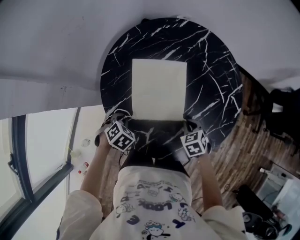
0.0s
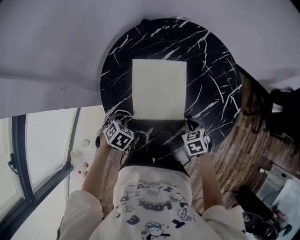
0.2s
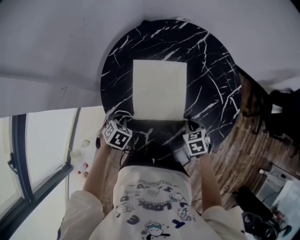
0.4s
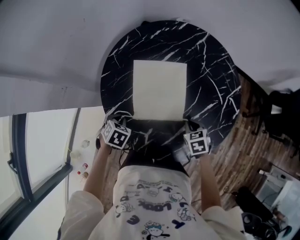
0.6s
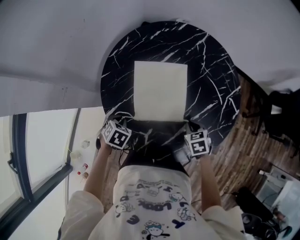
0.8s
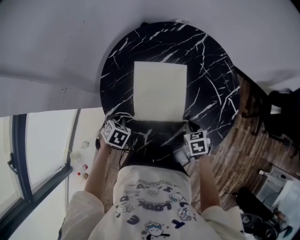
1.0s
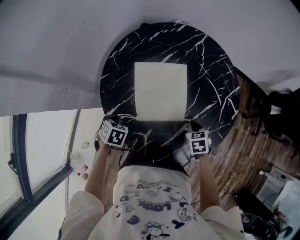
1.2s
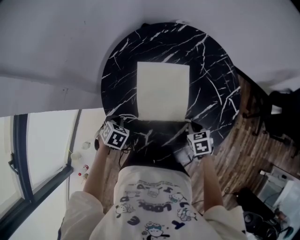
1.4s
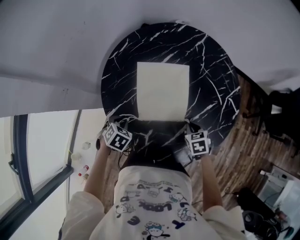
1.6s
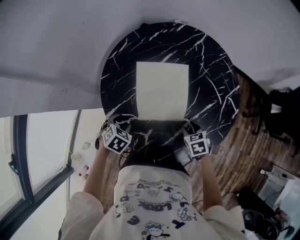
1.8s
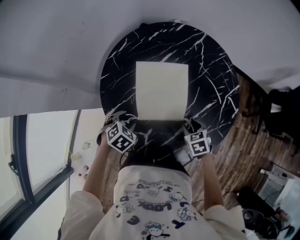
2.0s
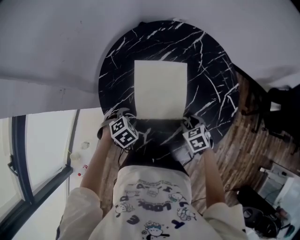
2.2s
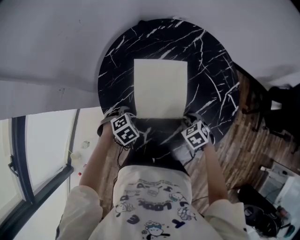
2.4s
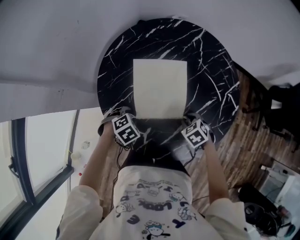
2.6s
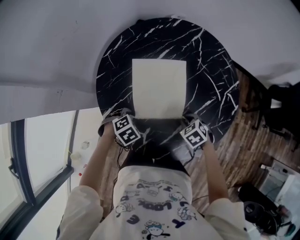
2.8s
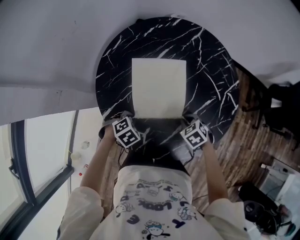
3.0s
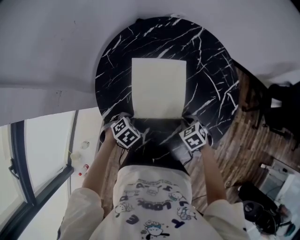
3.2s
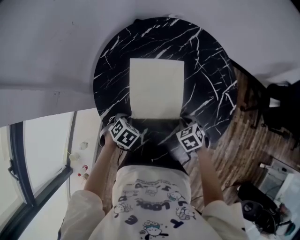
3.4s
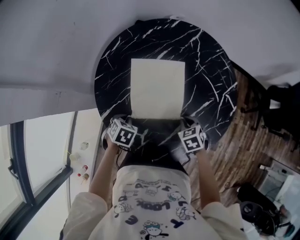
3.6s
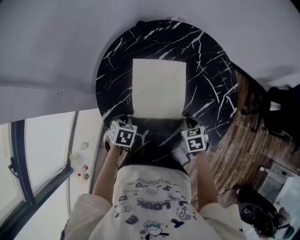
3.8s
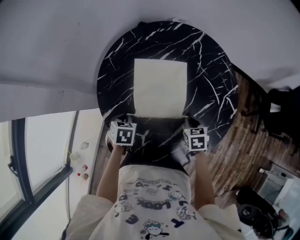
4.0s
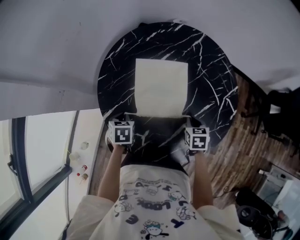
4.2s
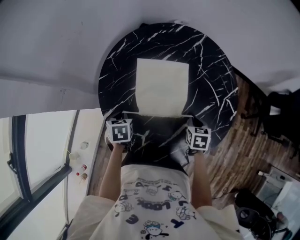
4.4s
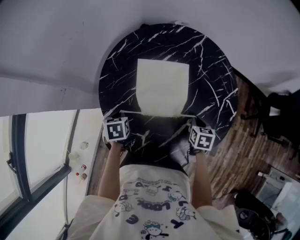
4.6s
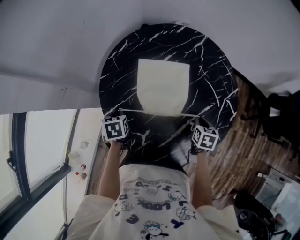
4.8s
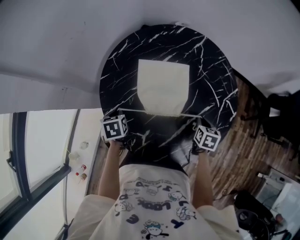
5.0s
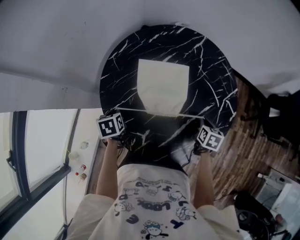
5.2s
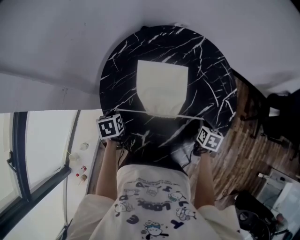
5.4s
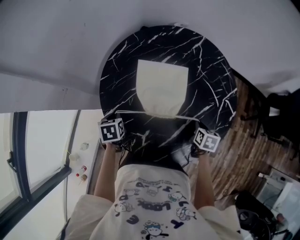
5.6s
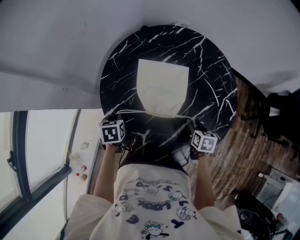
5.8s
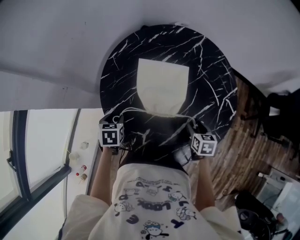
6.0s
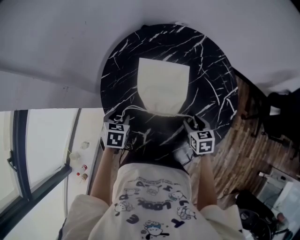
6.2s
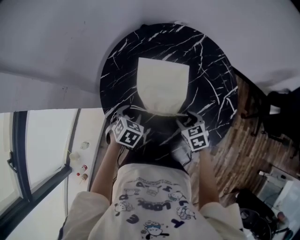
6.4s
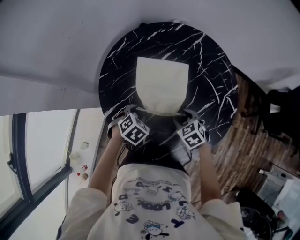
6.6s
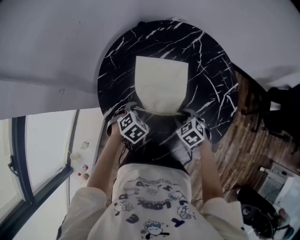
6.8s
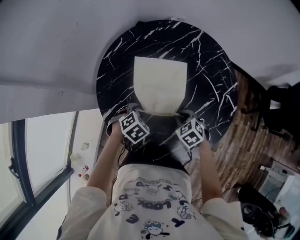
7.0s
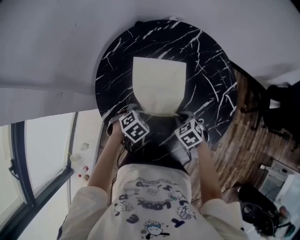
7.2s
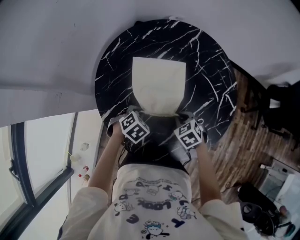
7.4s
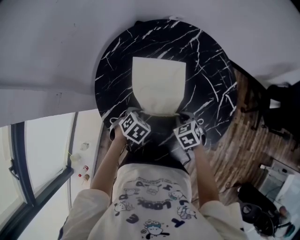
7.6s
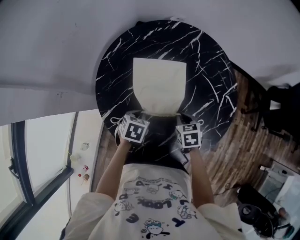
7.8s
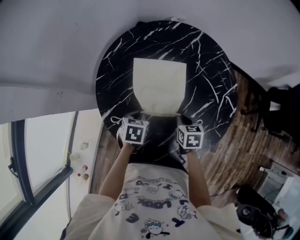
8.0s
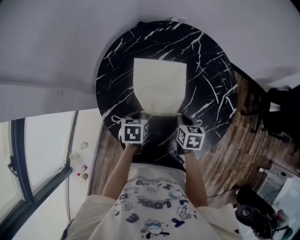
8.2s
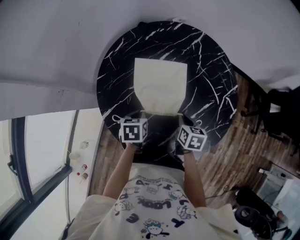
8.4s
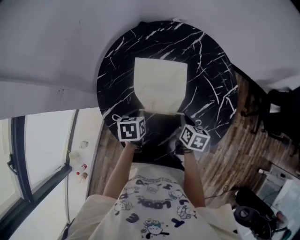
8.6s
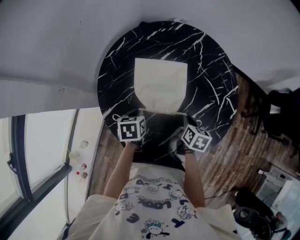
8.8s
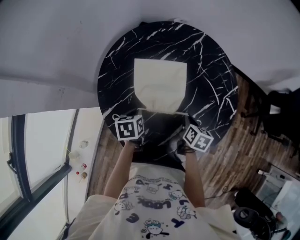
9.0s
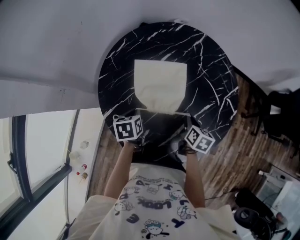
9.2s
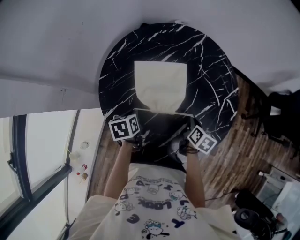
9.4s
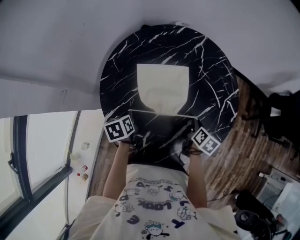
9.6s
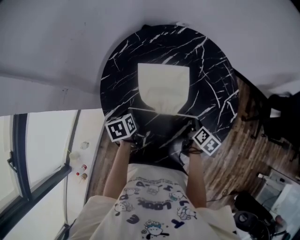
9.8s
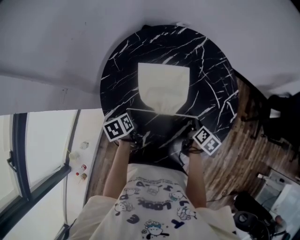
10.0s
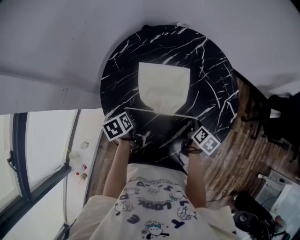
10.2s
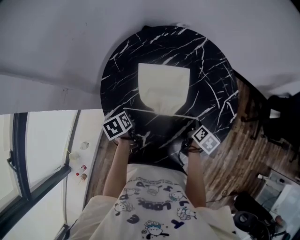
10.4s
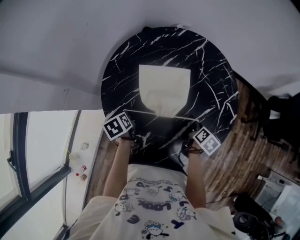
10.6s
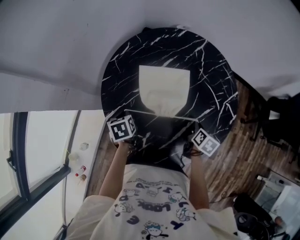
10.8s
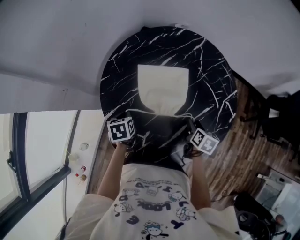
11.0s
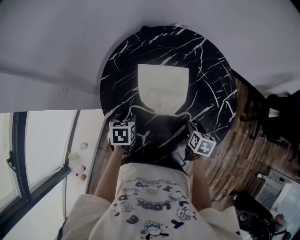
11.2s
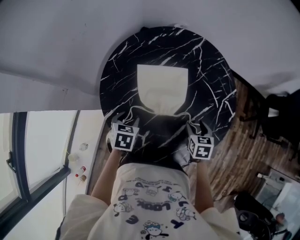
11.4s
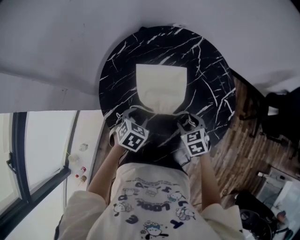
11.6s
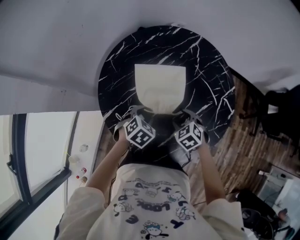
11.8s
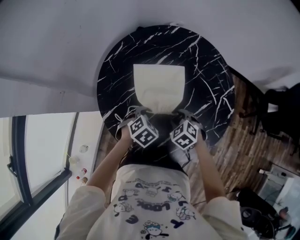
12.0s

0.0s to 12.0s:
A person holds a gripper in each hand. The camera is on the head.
1.6s to 3.0s: The right gripper changes its angle by approximately 20 degrees, and opens, then closes again; the left gripper changes place by roughly 5 cm, turns by some 30 degrees, and opens, then closes once more.
3.0s to 4.4s: The right gripper ends up roughly 5 cm from where it was, and swivels some 40 degrees. The left gripper shifts by about 5 cm, and rolls counterclockwise, seen from behind, by some 60 degrees.
4.4s to 6.0s: The right gripper opens its fingers, while the left gripper opens up.
6.0s to 7.6s: The right gripper moves to the left, about 10 cm, changes its angle by about 30 degrees, and closes its fingers. The left gripper is displaced to the right by approximately 15 cm, turns by roughly 40 degrees, and closes.
7.6s to 9.0s: The left gripper rolls counterclockwise, seen from behind, by about 50 degrees. The right gripper ends up about 5 cm from where it was, and twists some 50 degrees clockwise, seen from behind.
9.0s to 10.4s: The right gripper goes about 5 cm to the right. Meanwhile the left gripper shifts about 10 cm to the left, and rotates approximately 20 degrees.
10.4s to 12.0s: The left gripper shifts approximately 15 cm to the right, rotates around the line of its fingers by about 80 degrees, clockwise from behind, and opens. The right gripper goes roughly 15 cm to the left, twists approximately 90 degrees counterclockwise, seen from behind, and opens.

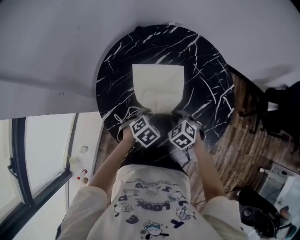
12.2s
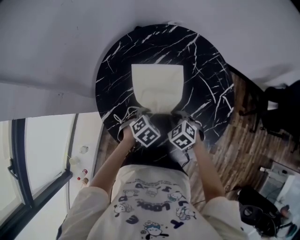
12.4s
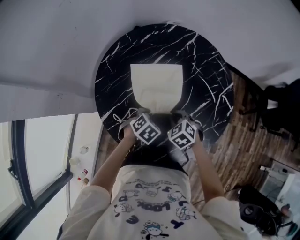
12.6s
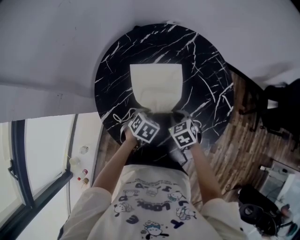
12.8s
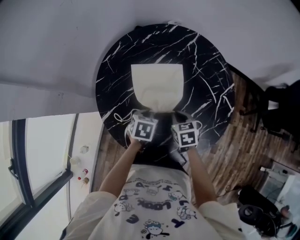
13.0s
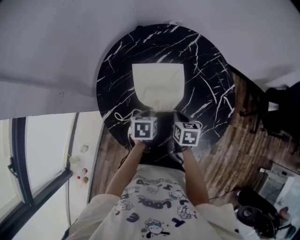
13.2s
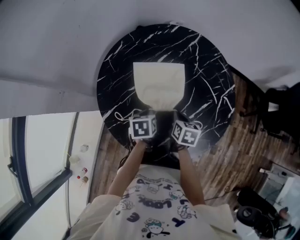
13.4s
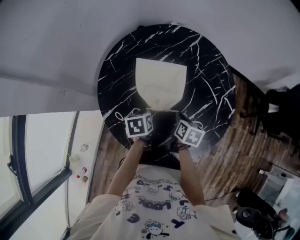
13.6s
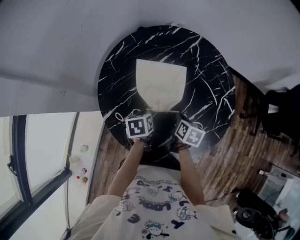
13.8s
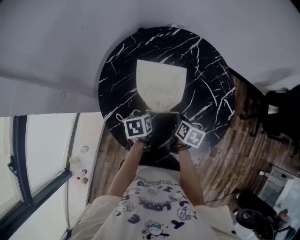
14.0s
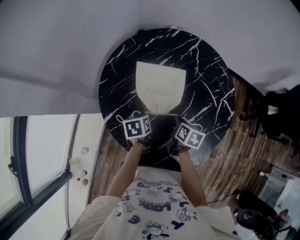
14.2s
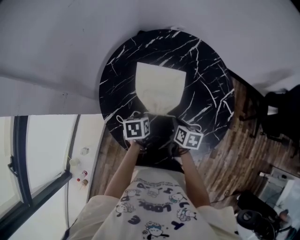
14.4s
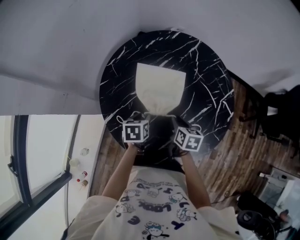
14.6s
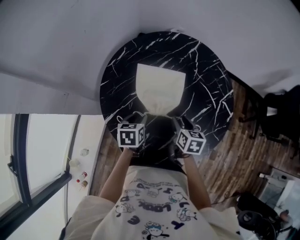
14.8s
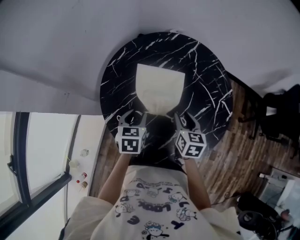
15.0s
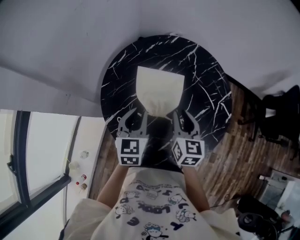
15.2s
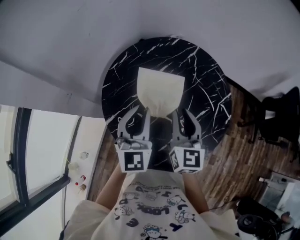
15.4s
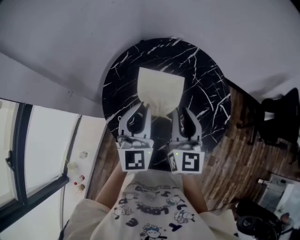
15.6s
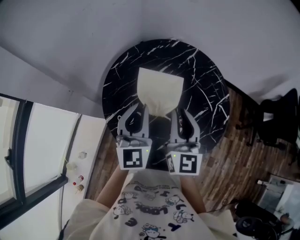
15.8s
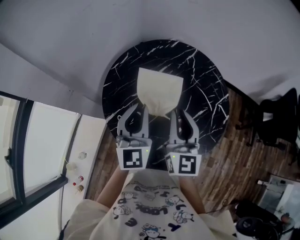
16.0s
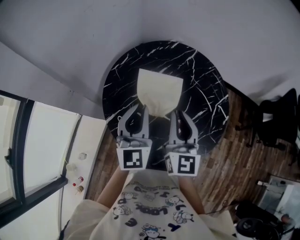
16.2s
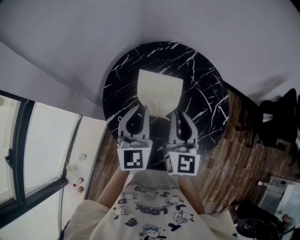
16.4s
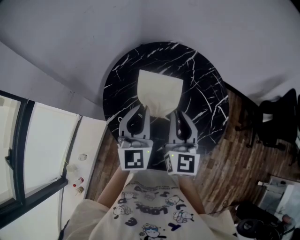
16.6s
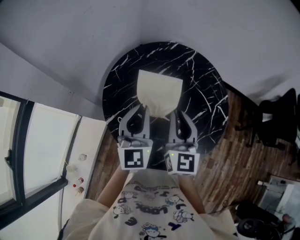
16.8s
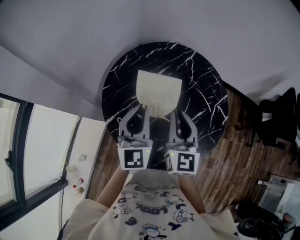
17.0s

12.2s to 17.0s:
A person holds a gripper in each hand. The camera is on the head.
12.2s to 13.8s: The right gripper rolls clockwise, seen from behind, by about 70 degrees; the left gripper rolls counterclockwise, seen from behind, by approximately 60 degrees, and closes up.
13.8s to 15.4s: The two grippers go some 25 cm upward. The left gripper tips its fingers upward by roughly 50 degrees, and opens and closes again. Meanwhile the right gripper angles its fingers upward, by approximately 40 degrees, and opens, then closes again.
15.4s to 17.0s: The grippers make only small movements.

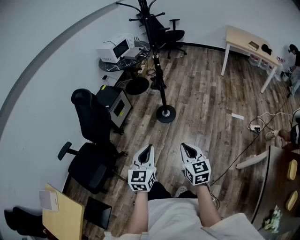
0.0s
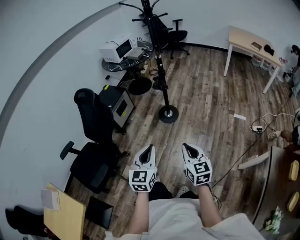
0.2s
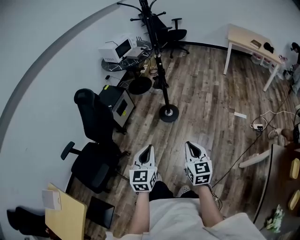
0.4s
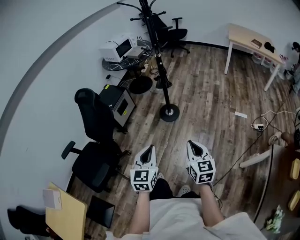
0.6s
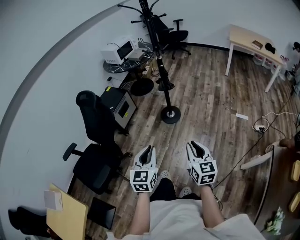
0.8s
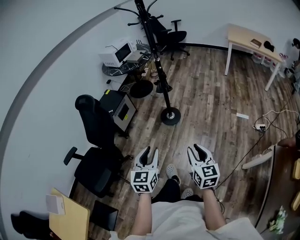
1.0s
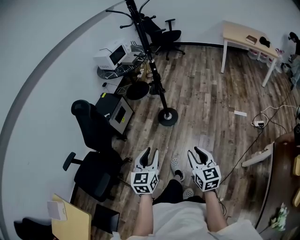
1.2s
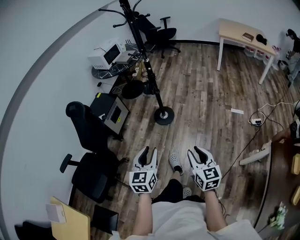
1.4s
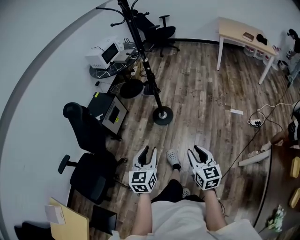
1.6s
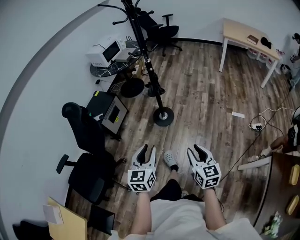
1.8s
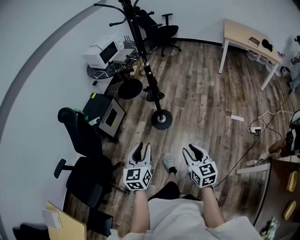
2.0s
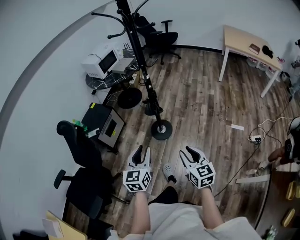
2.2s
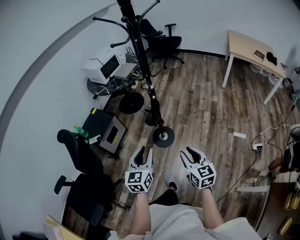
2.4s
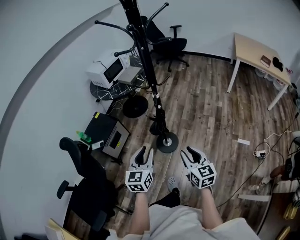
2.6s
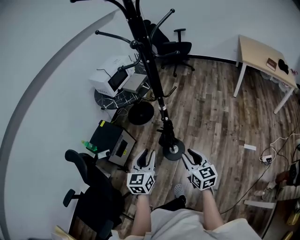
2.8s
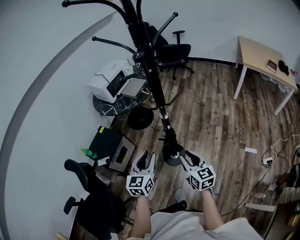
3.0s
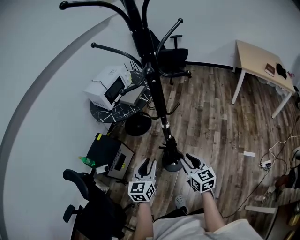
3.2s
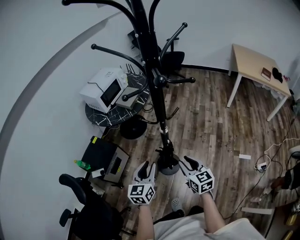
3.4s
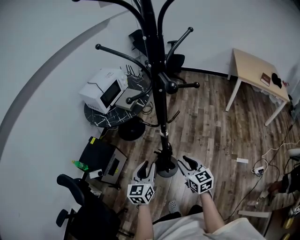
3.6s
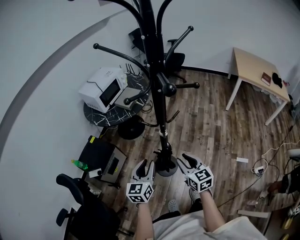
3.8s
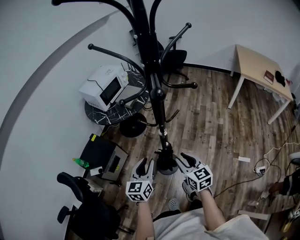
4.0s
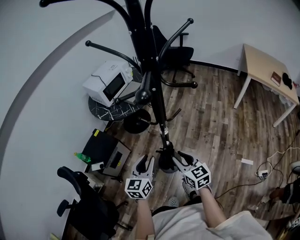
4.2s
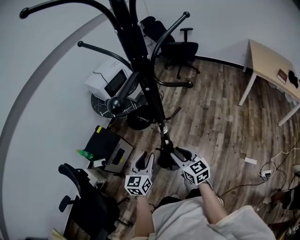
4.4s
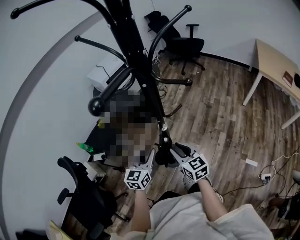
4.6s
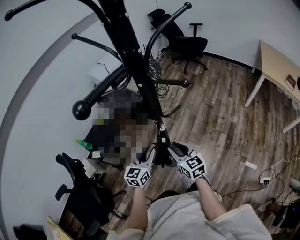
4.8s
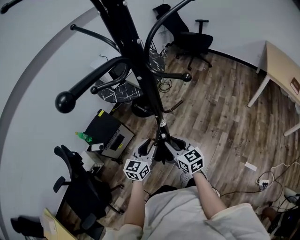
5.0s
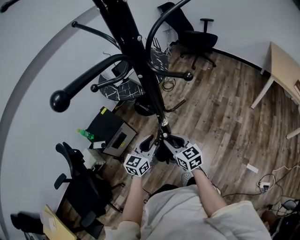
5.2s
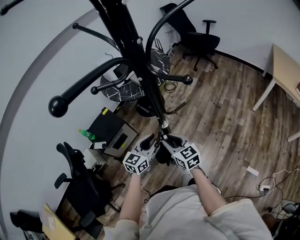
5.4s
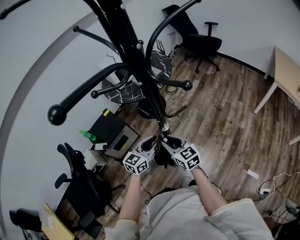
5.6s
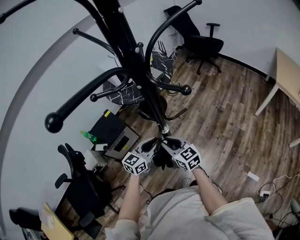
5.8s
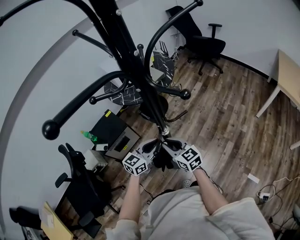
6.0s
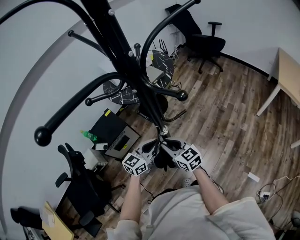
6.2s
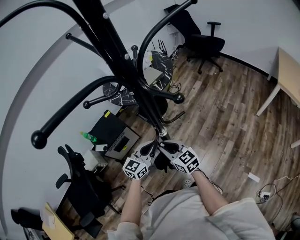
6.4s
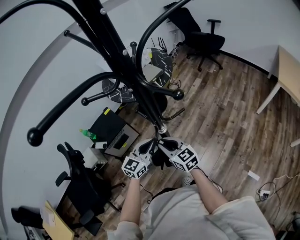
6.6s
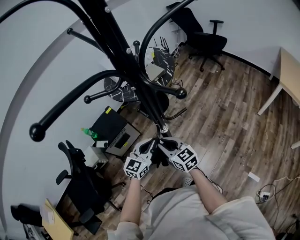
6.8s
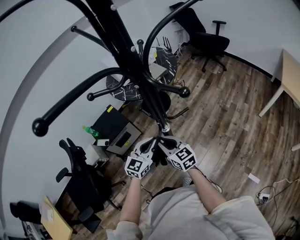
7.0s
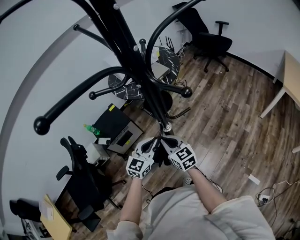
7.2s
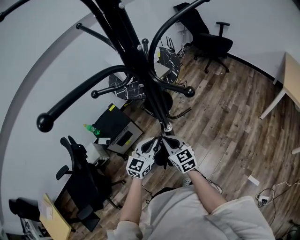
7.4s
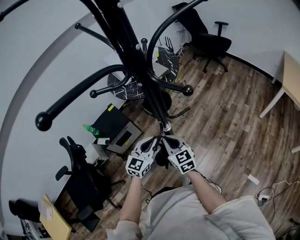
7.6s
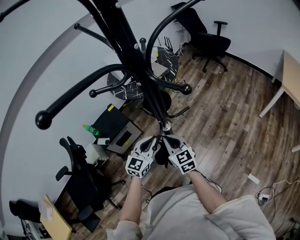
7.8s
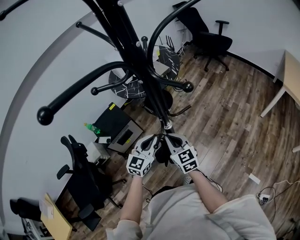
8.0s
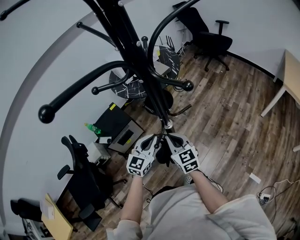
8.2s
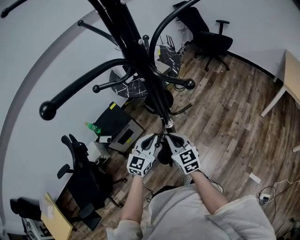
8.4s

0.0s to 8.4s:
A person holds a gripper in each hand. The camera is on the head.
0.0s to 1.4s: The left gripper is displaced forward by about 5 cm, and opens, while the right gripper heads to the right, covering some 10 cm, and opens.
1.4s to 2.8s: Both grippers are carried forward, approximately 50 cm.
2.8s to 4.2s: The grippers both shift forward by approximately 15 cm.
4.2s to 5.6s: The right gripper shifts approximately 10 cm forward and downward, and turns by about 20 degrees. Meanwhile the left gripper travels forward, to the right and downward by approximately 15 cm.
5.6s to 7.0s: The left gripper closes its fingers.
7.0s to 8.4s: The grippers stay close to where they were, moving slightly.
